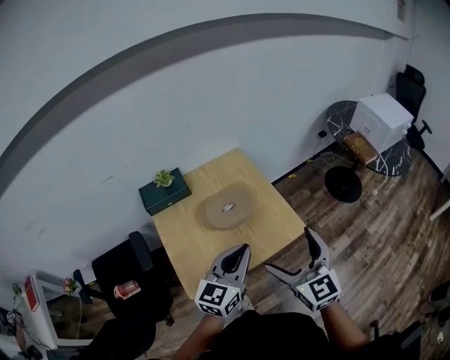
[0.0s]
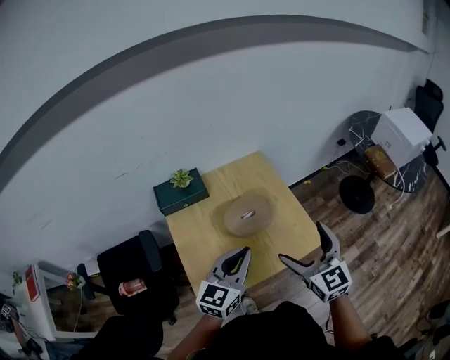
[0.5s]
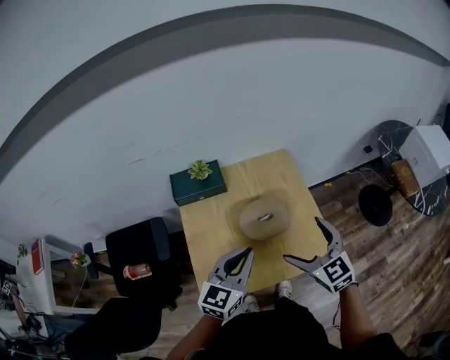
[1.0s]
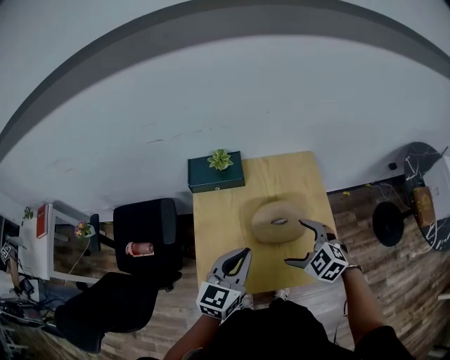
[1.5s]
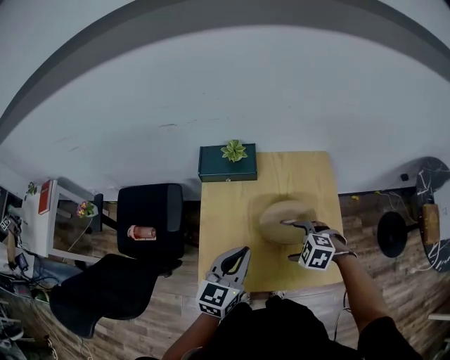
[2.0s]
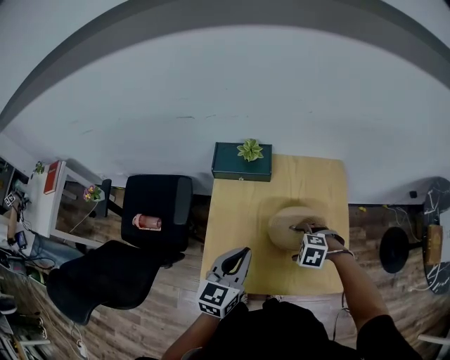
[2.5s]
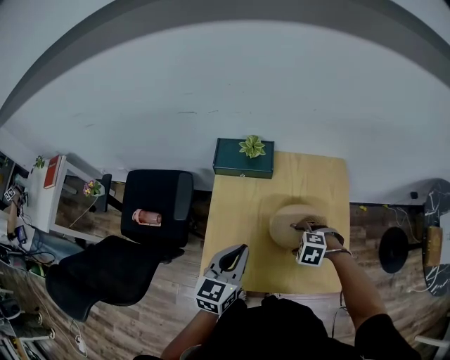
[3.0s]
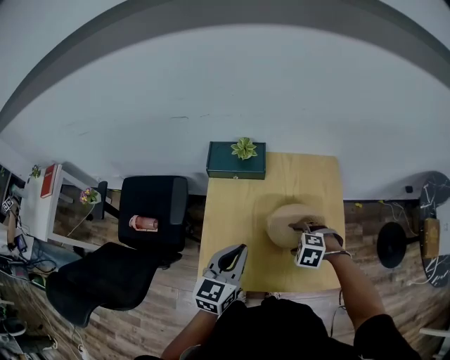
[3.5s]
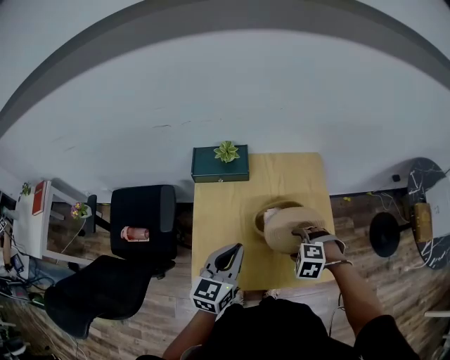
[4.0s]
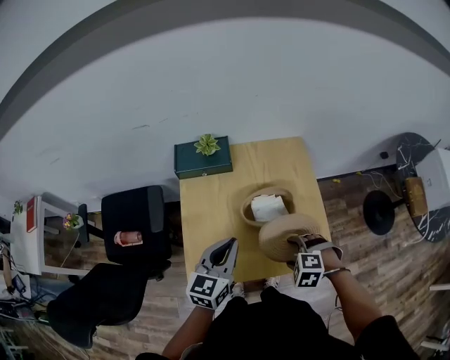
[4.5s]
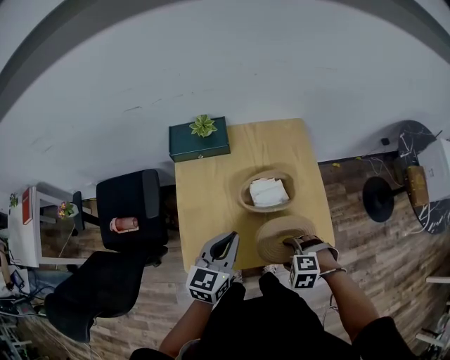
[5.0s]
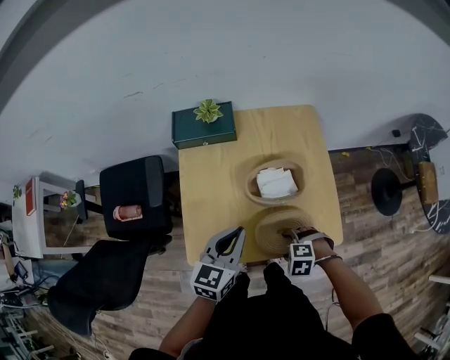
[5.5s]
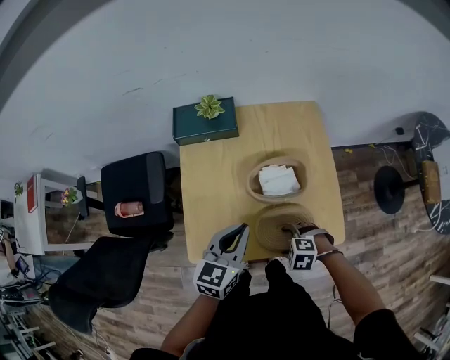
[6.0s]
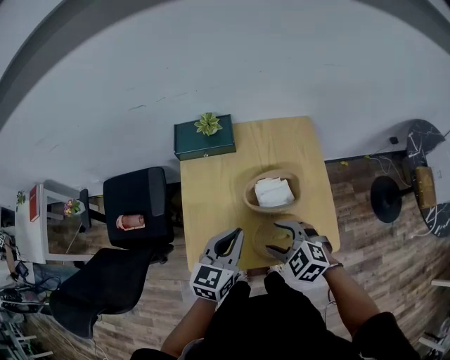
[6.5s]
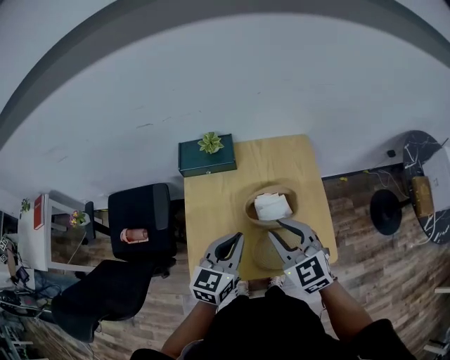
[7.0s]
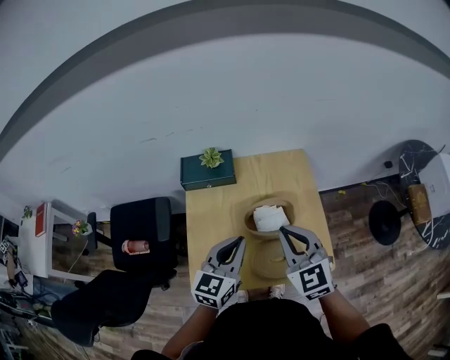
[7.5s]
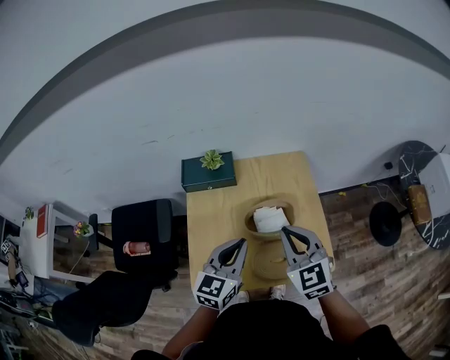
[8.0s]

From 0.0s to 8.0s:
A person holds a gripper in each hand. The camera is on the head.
From 0.0s to 2.0s: The left gripper shifts by roughly 20 cm, and swivels approximately 30 degrees. The right gripper moves downward, some 25 cm, and points its fingers roughly 60 degrees further downward.
From 2.0s to 4.0s: The grippers stay close to where they were, moving slightly.
From 4.0s to 6.0s: The right gripper changes place by some 15 cm. Meanwhile the left gripper moves downward, about 5 cm.
From 6.0s to 8.0s: The right gripper shifts approximately 30 cm upward, tilts its fingers roughly 50 degrees upward, and closes up. Meanwhile the left gripper is displaced upward by some 10 cm.

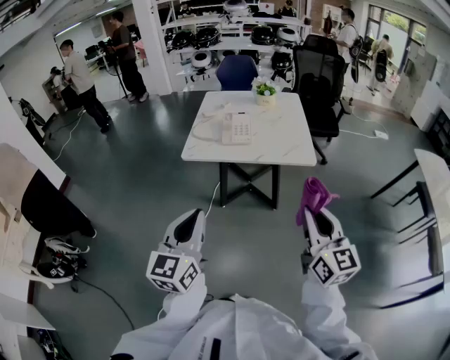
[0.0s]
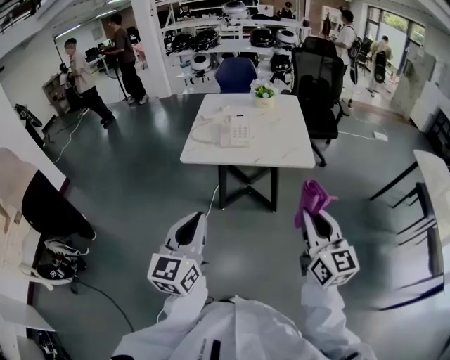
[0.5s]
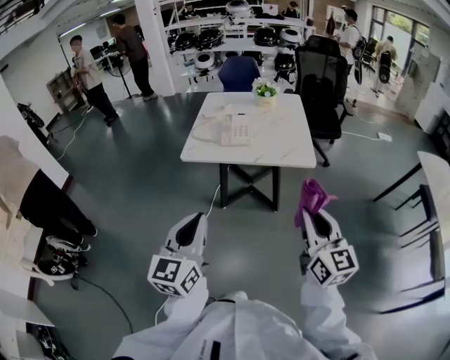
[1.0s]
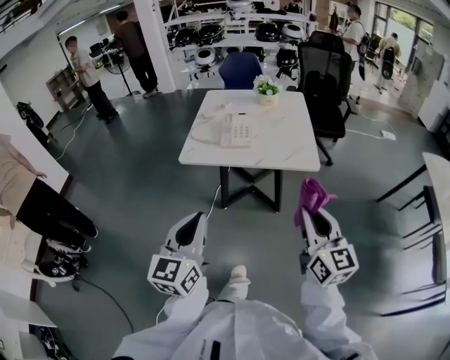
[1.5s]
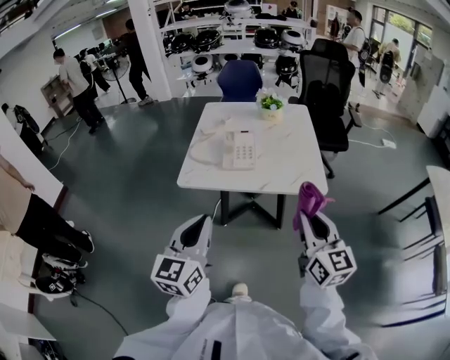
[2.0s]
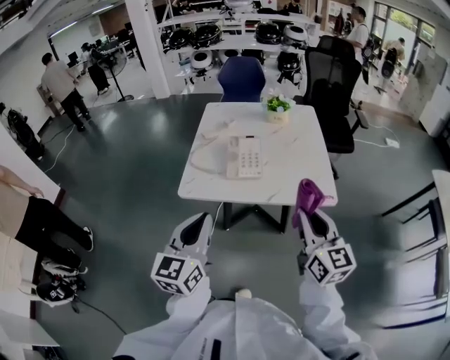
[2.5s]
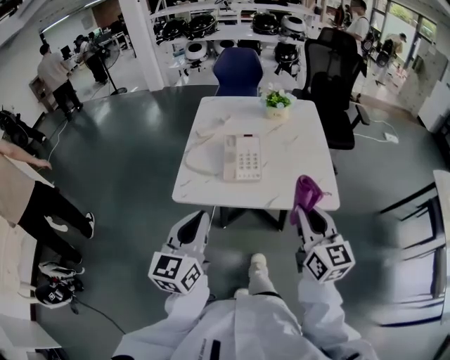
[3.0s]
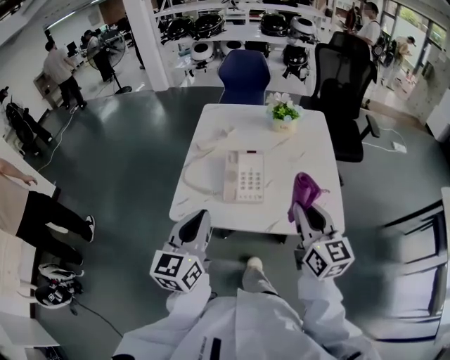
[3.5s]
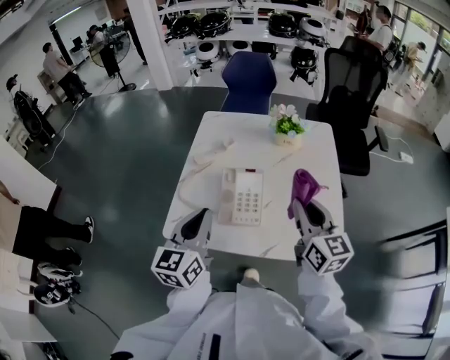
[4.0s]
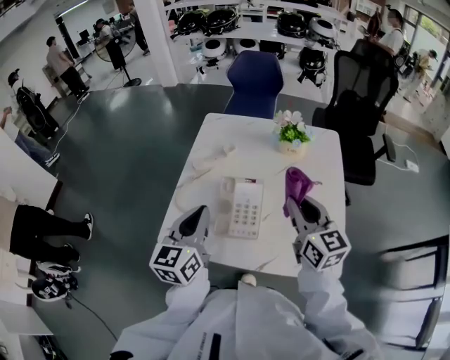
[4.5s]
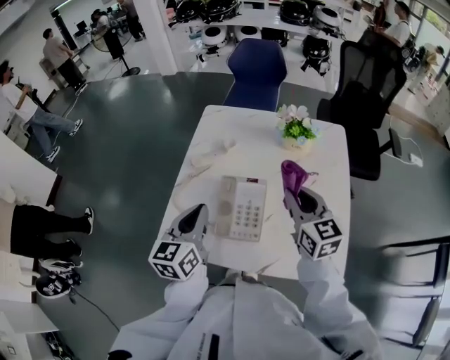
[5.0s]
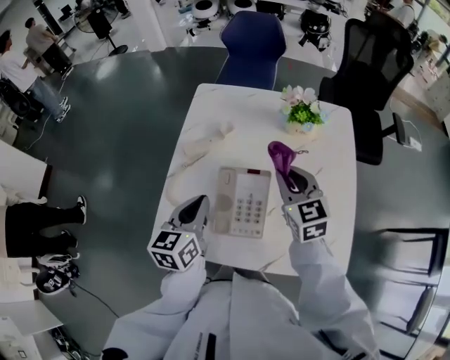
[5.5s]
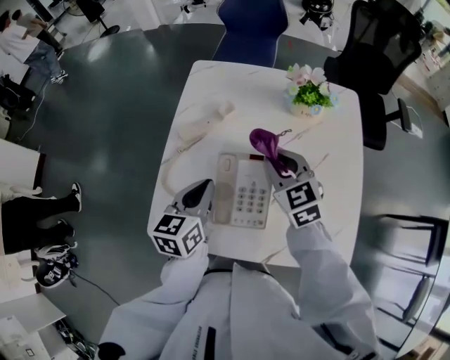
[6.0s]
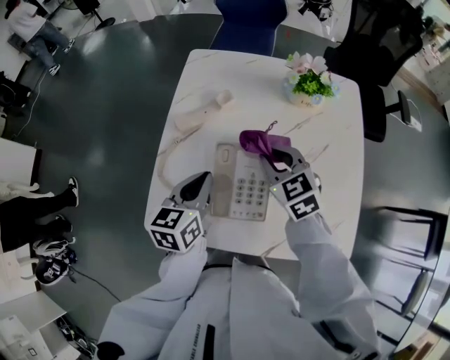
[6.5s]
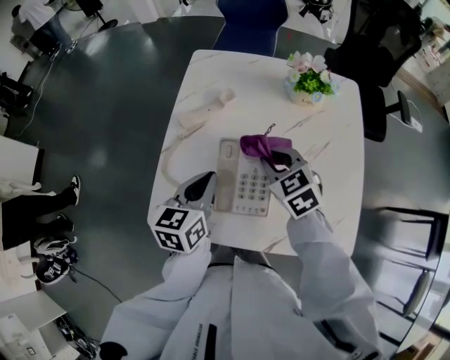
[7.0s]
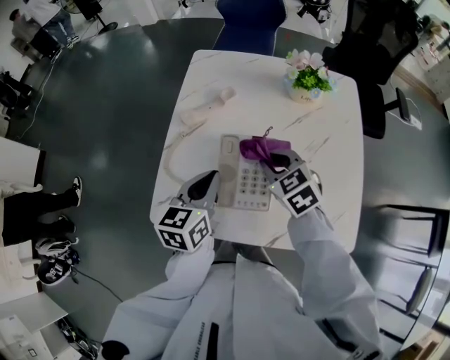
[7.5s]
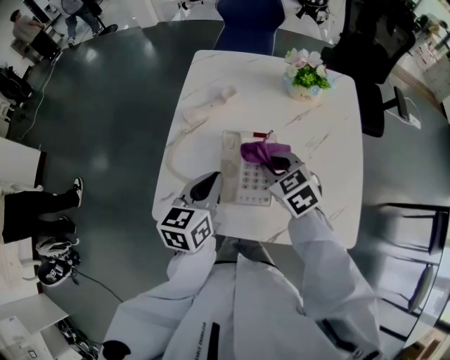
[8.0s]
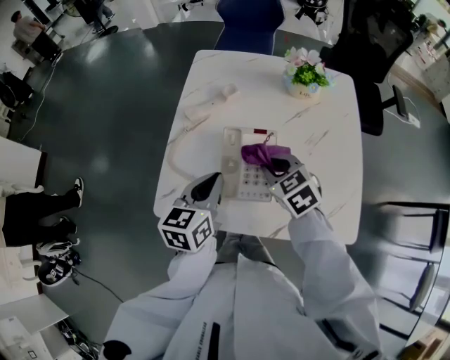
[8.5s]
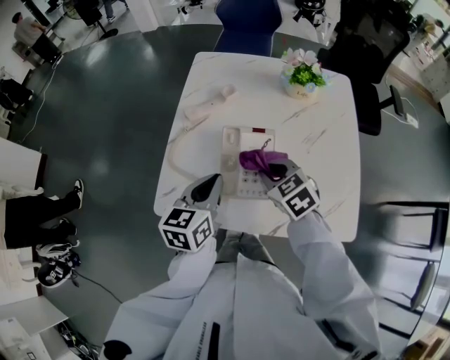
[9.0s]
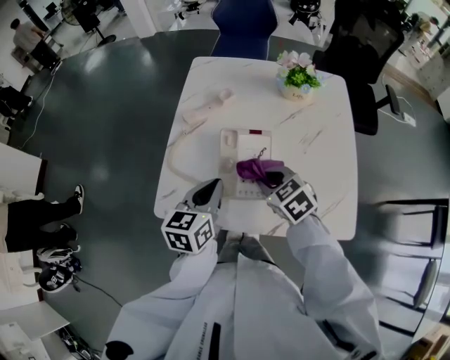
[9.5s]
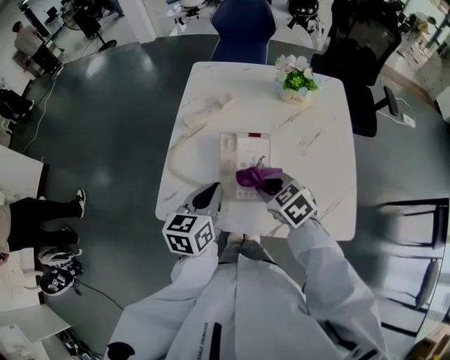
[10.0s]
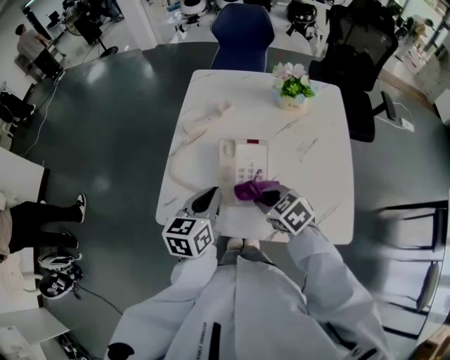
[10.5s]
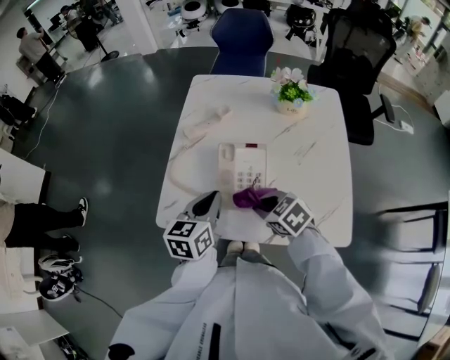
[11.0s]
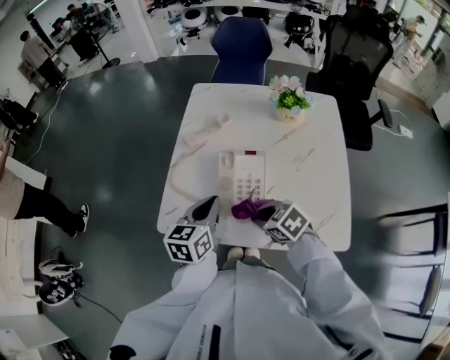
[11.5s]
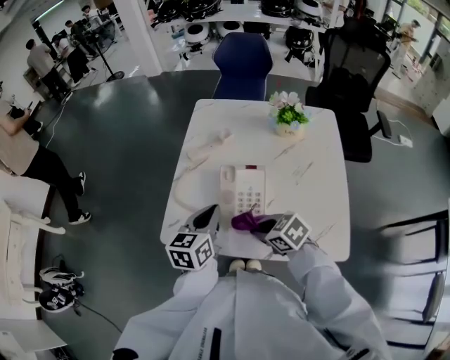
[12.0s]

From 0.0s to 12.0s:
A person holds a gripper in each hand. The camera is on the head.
From 0.0s to 2.0s: The grippers both shift forward by approximately 15 cm.
From 2.0s to 4.0s: Both grippers travel together forward, approximately 35 cm.
From 4.0s to 6.0s: The left gripper travels forward and downward by about 20 cm, and changes its angle by roughly 20 degrees; the right gripper moves forward, downward and to the left, about 25 cm, and rotates some 40 degrees.
From 6.0s to 8.0s: The right gripper is displaced backward by about 5 cm.
From 8.0s to 10.0s: The right gripper is displaced backward by roughly 10 cm.
From 10.0s to 12.0s: The right gripper is displaced backward by approximately 5 cm.

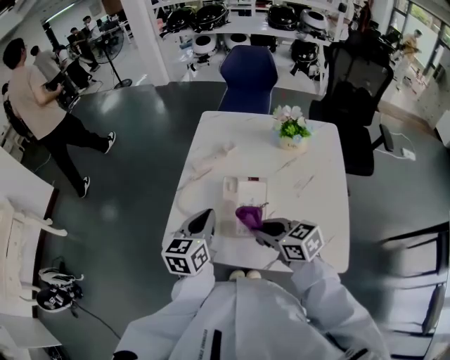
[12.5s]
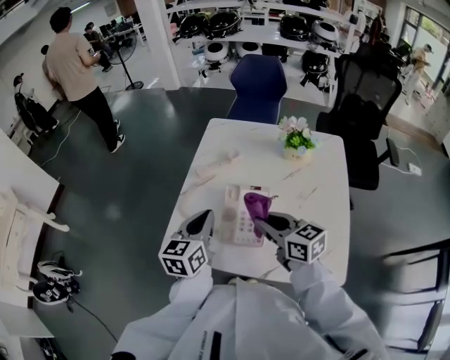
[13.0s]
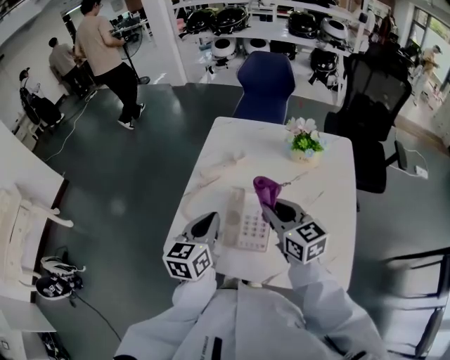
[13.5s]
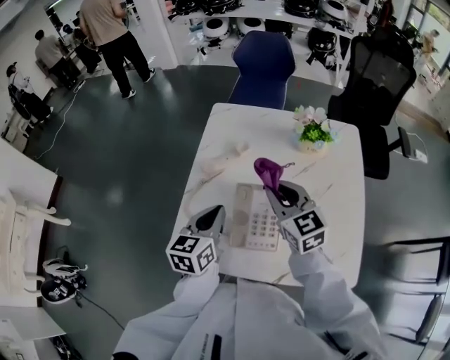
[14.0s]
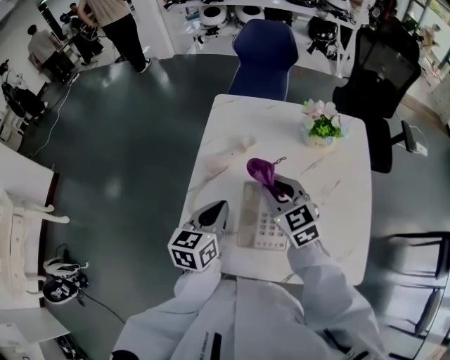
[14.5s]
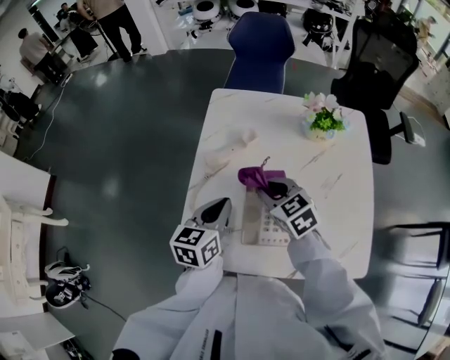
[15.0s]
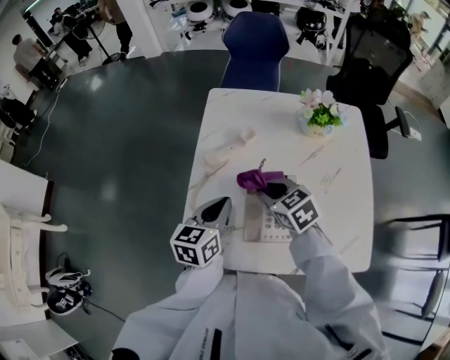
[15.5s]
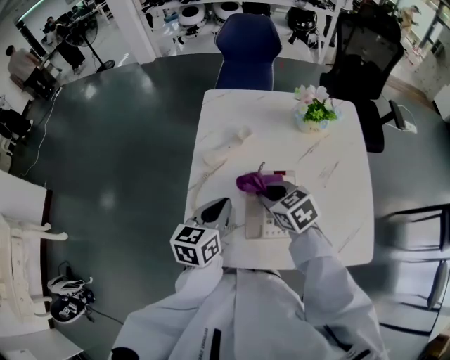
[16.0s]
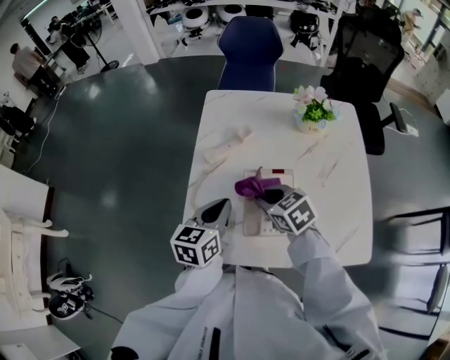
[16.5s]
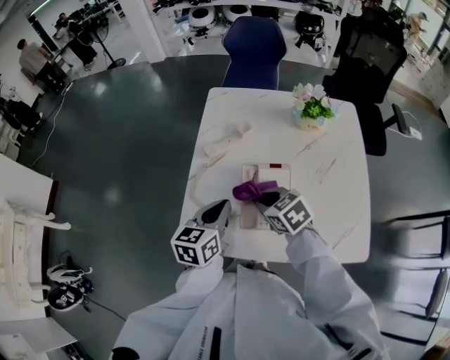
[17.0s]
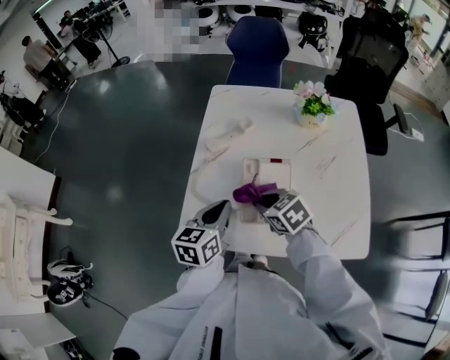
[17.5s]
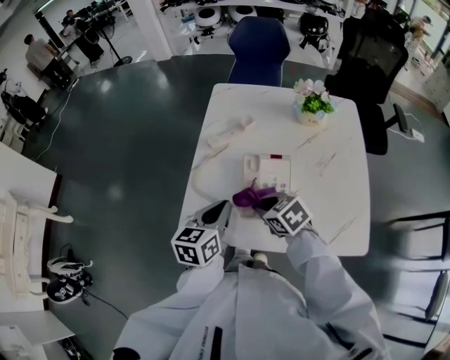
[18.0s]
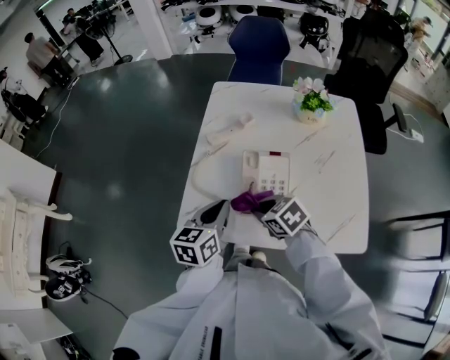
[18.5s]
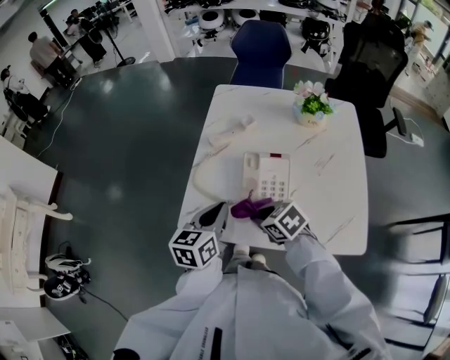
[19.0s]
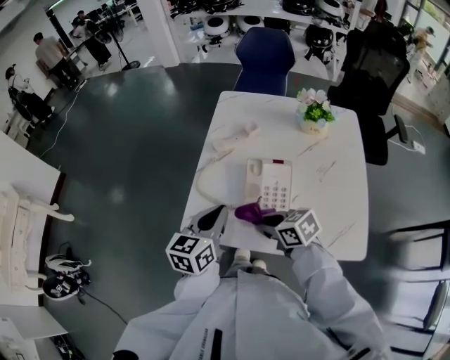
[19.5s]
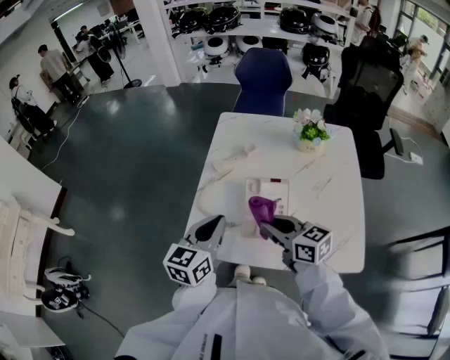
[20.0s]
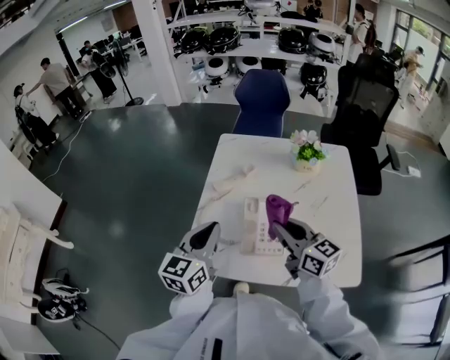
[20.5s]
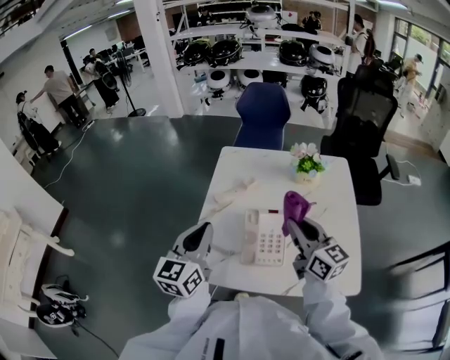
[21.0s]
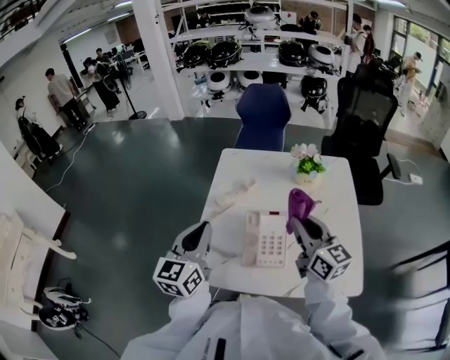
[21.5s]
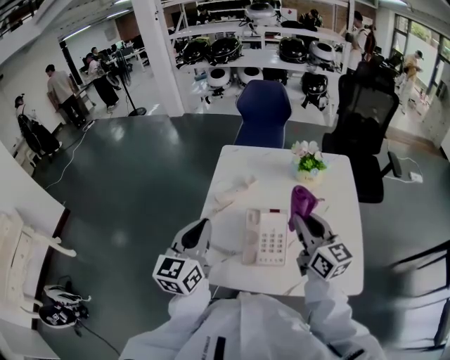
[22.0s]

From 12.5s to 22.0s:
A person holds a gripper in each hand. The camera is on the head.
From 12.5s to 14.5s: The left gripper goes approximately 10 cm forward, while the right gripper moves forward, approximately 20 cm, and rotates approximately 30 degrees.
From 14.5s to 16.5s: The right gripper heads downward and backward, covering roughly 10 cm, and swivels about 30 degrees.
From 16.5s to 18.0s: Both grippers move backward, some 5 cm.
From 18.0s to 20.0s: The grippers both shift upward by approximately 10 cm. The right gripper tilts its fingers roughly 30 degrees upward.
From 20.0s to 22.0s: The left gripper goes roughly 10 cm upward; the right gripper goes roughly 15 cm to the right, upward and forward, and changes its angle by approximately 30 degrees.
